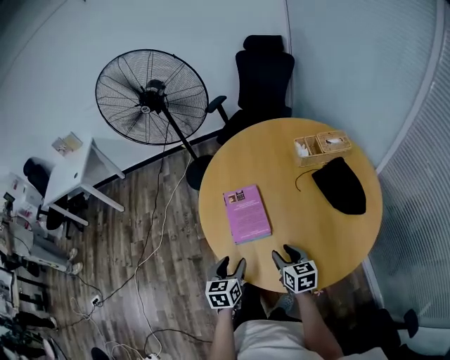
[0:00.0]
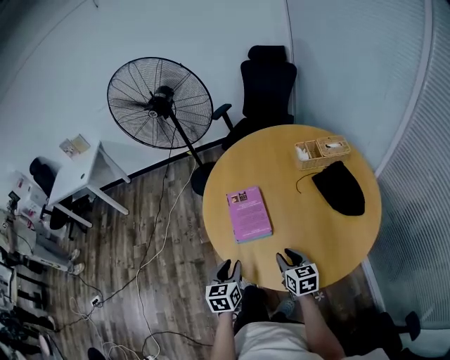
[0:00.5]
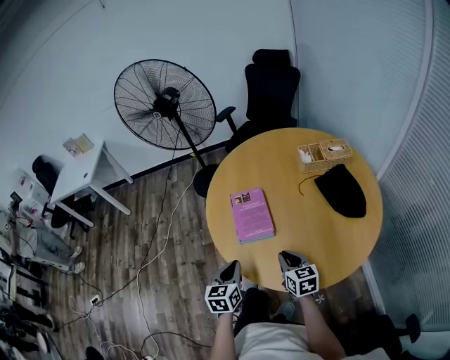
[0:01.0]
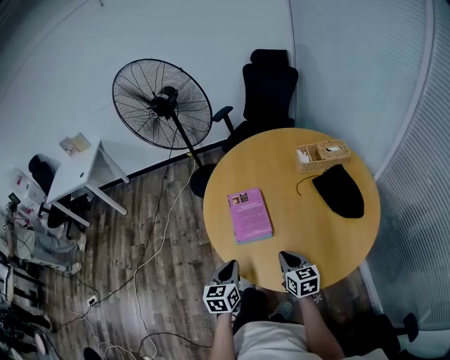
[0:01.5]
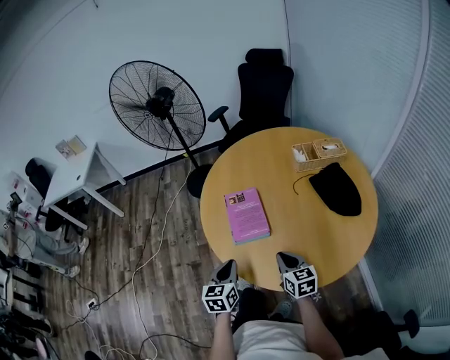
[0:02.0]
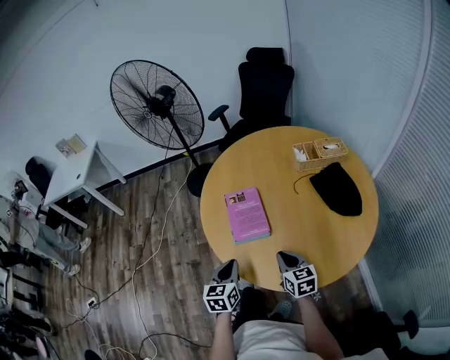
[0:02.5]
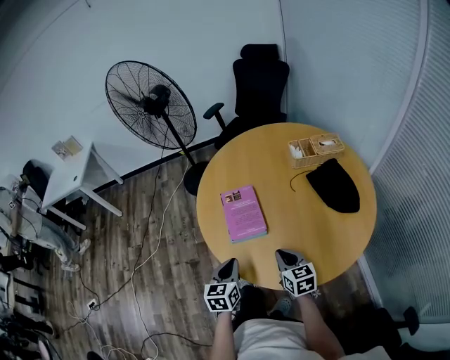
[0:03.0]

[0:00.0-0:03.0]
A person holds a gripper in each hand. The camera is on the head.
0:00.0 to 0:01.5: The left gripper closes. The right gripper closes up.
0:01.5 to 0:03.0: The grippers make only small movements.

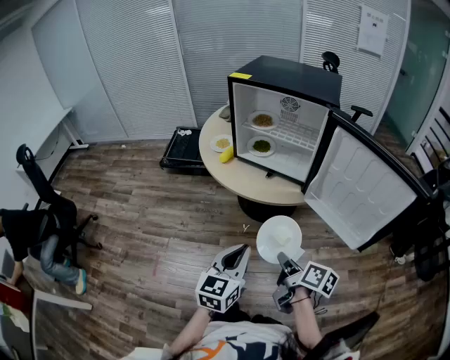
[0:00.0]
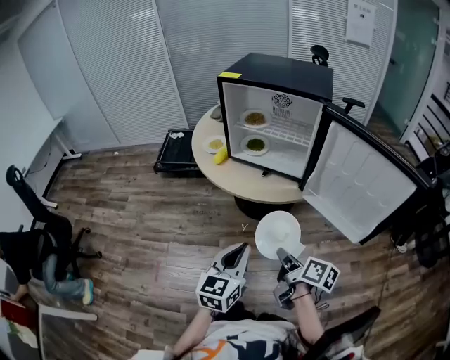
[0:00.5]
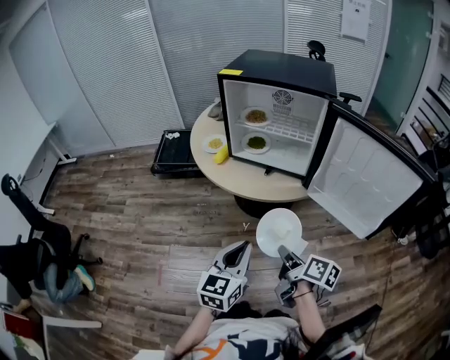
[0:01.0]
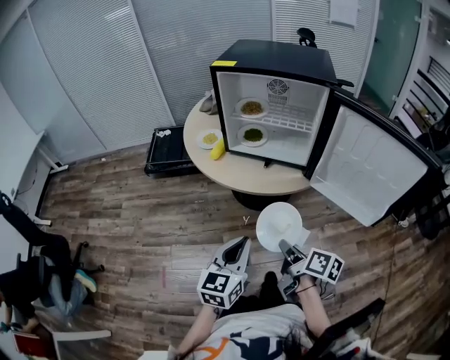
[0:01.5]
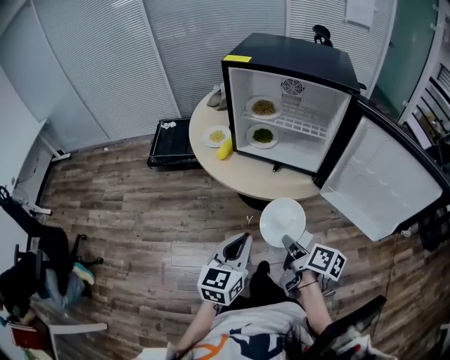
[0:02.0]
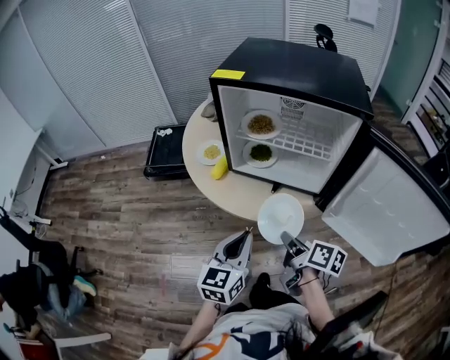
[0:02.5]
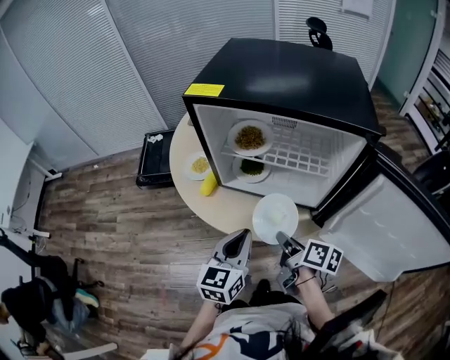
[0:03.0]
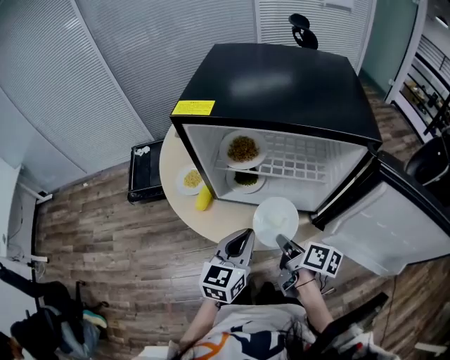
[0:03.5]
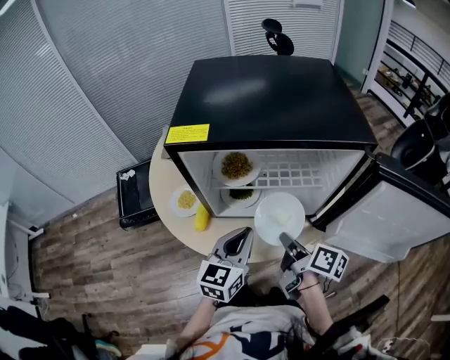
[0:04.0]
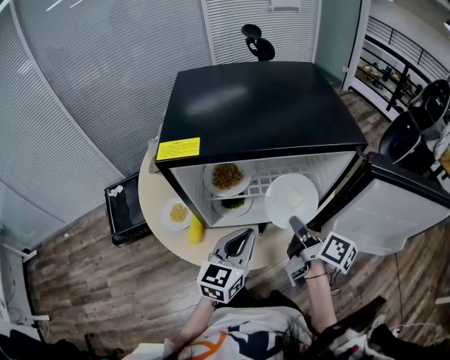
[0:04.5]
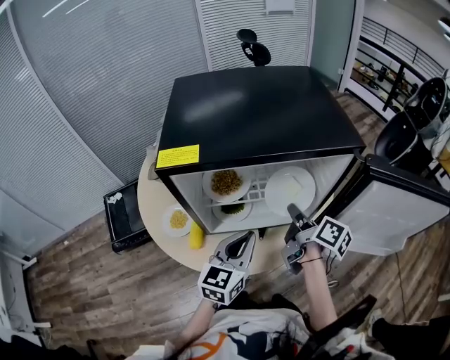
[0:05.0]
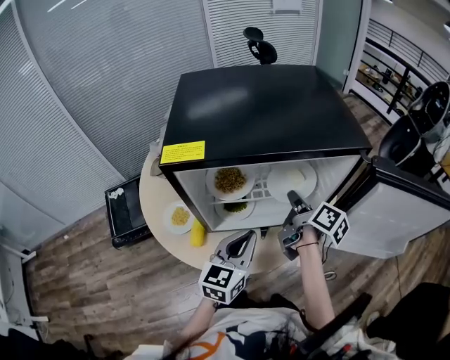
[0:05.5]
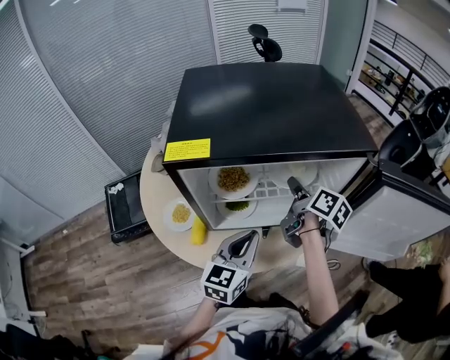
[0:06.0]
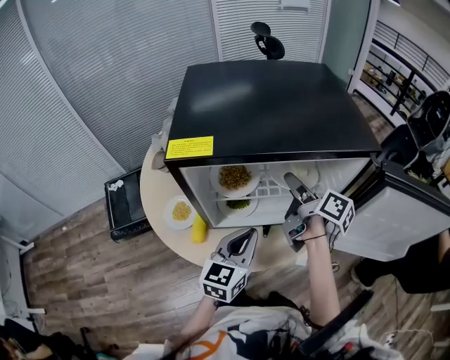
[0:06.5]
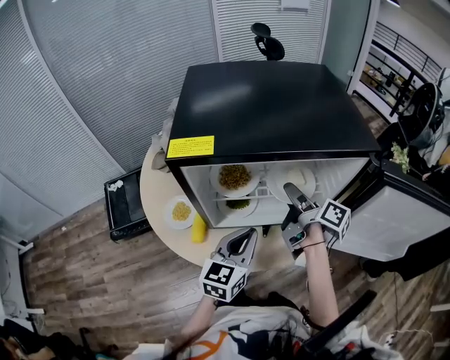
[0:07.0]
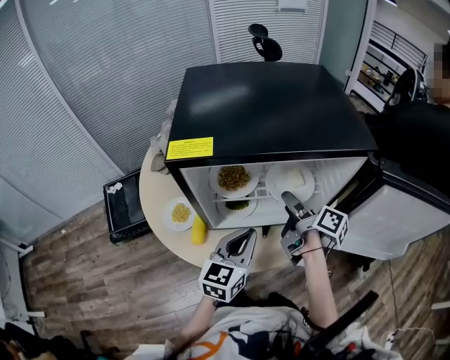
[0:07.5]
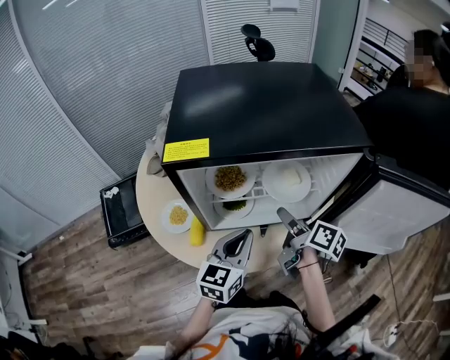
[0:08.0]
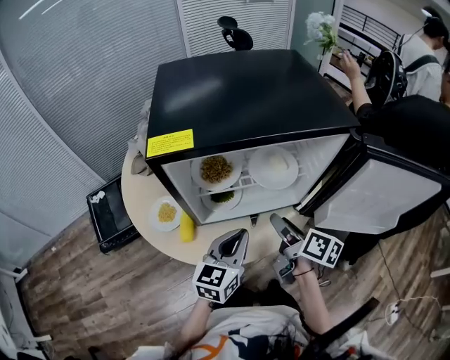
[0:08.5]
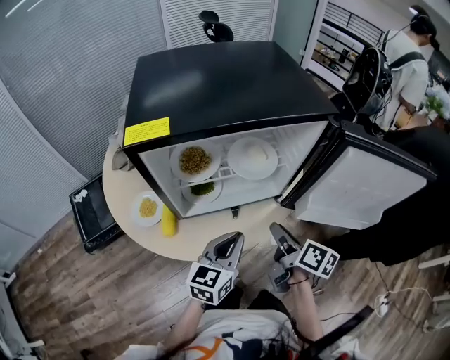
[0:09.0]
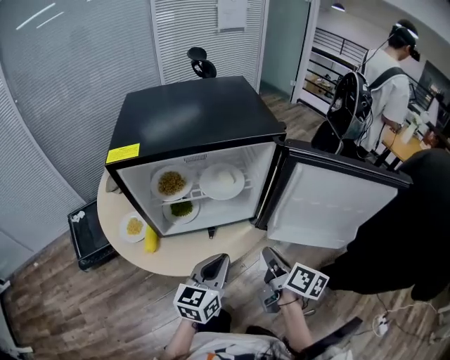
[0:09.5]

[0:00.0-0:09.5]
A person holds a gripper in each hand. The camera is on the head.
0:00.0 to 0:02.0: Both grippers move forward and to the left, approximately 10 cm.
0:02.0 to 0:04.0: The grippers both shift forward by roughly 25 cm. The left gripper turns by about 20 degrees.
0:04.0 to 0:05.5: The right gripper moves forward, approximately 15 cm, and changes its angle by roughly 20 degrees.
0:05.5 to 0:07.5: The right gripper opens up.
0:07.5 to 0:09.5: The right gripper is displaced backward and to the right by roughly 20 cm, swivels approximately 20 degrees, and closes its fingers, while the left gripper heads to the right and backward, covering about 15 cm.

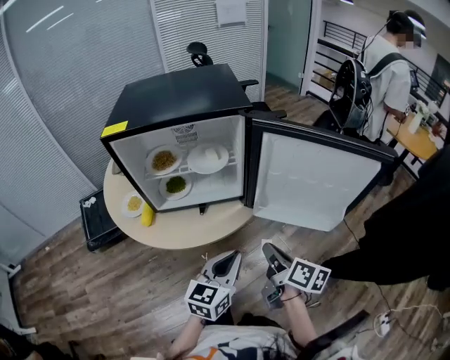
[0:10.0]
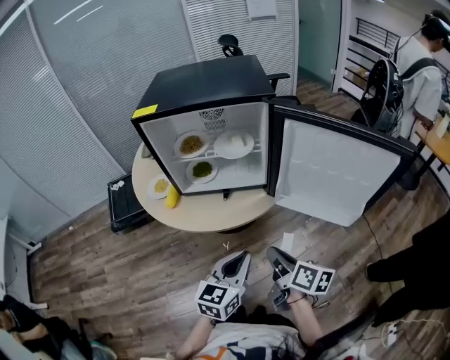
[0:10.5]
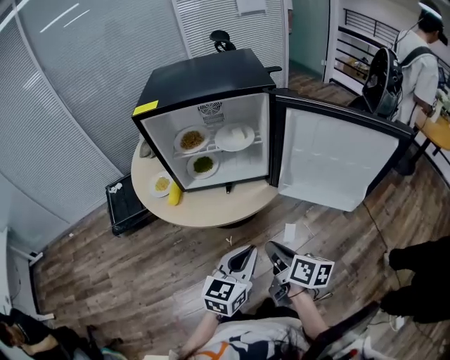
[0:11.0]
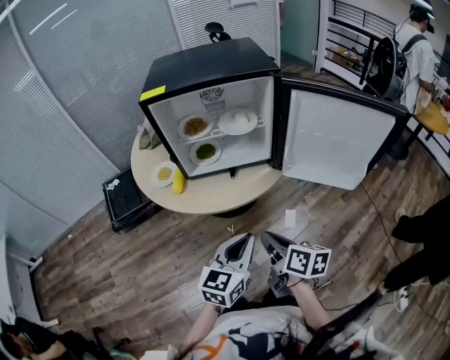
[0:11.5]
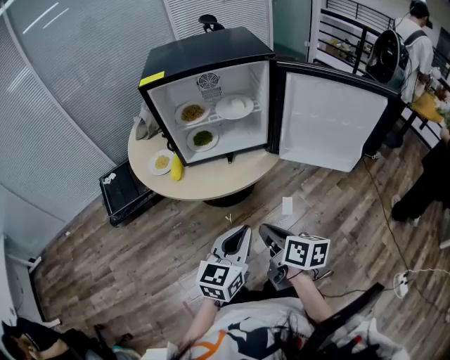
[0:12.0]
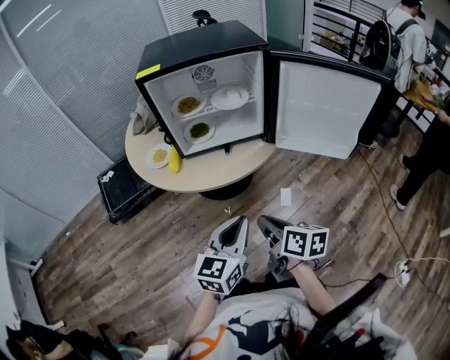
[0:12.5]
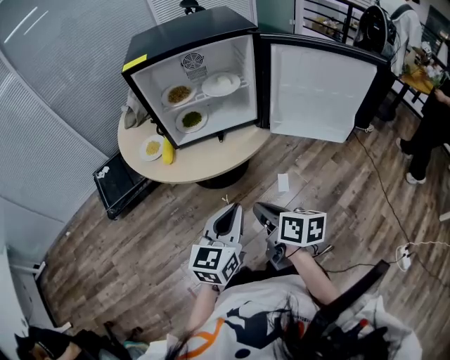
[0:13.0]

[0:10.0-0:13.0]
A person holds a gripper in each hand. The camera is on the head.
0:10.0 to 0:11.5: The left gripper heads backward and to the left, covering about 10 cm; the right gripper travels to the left and backward by roughly 15 cm.
0:11.5 to 0:13.0: The grippers stay close to where they were, moving slightly.

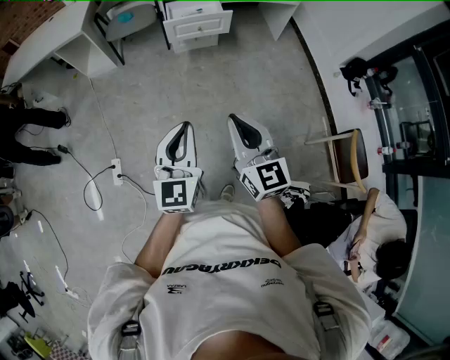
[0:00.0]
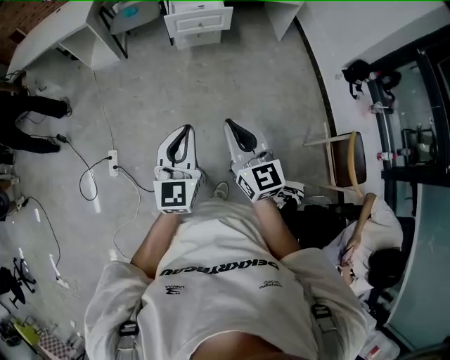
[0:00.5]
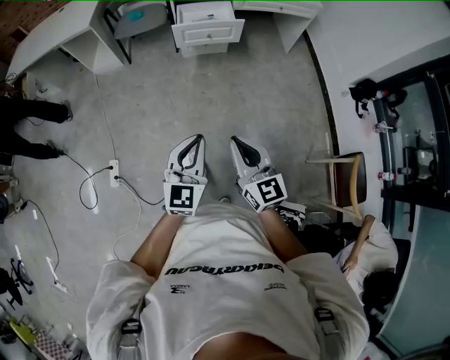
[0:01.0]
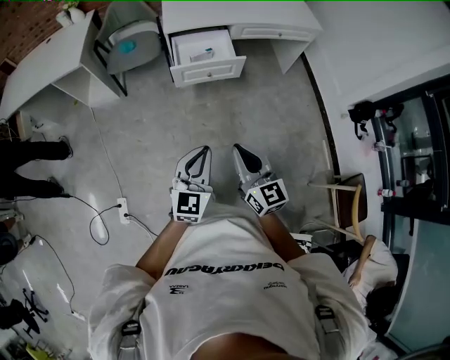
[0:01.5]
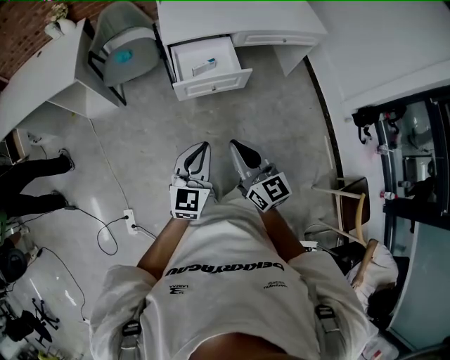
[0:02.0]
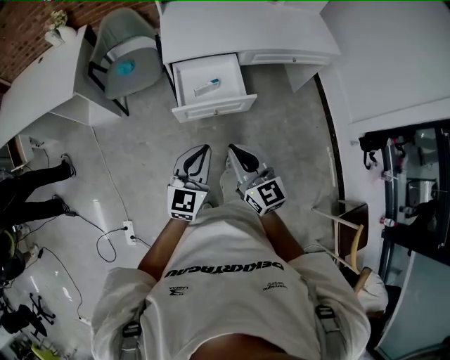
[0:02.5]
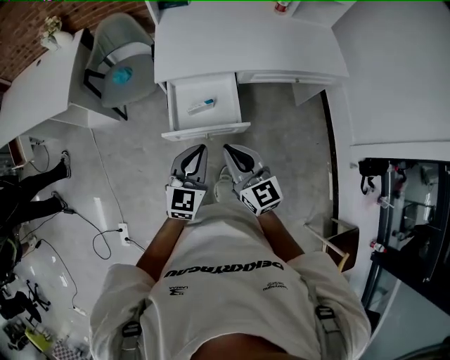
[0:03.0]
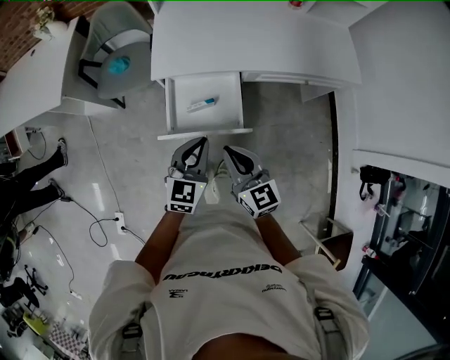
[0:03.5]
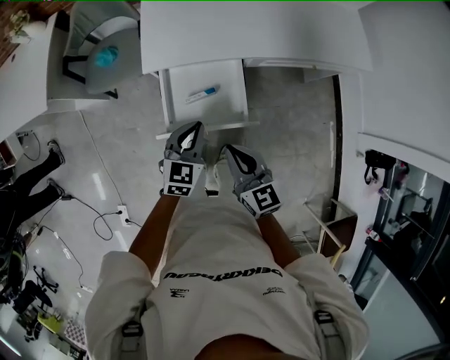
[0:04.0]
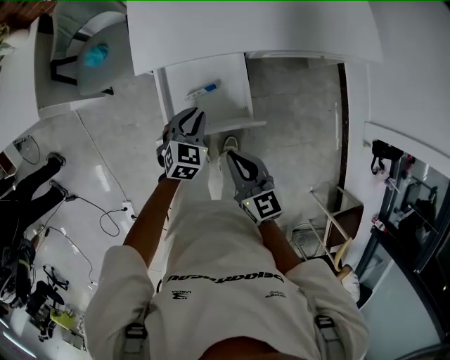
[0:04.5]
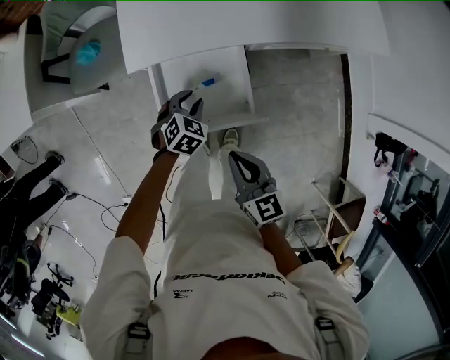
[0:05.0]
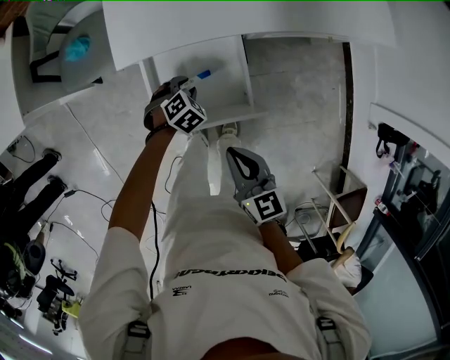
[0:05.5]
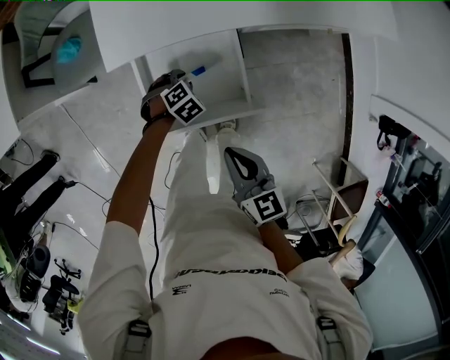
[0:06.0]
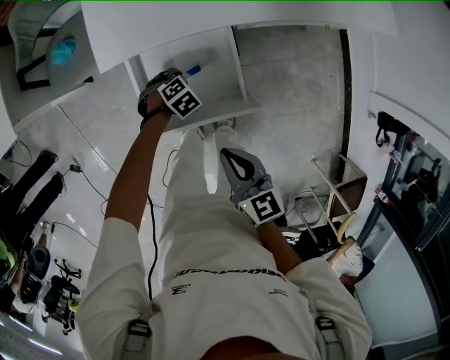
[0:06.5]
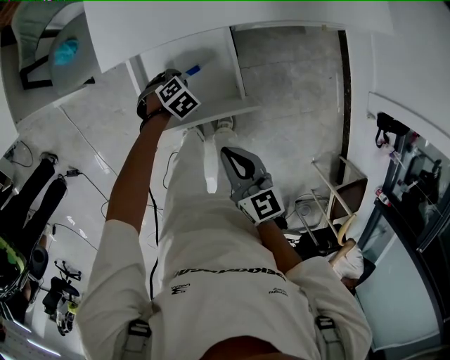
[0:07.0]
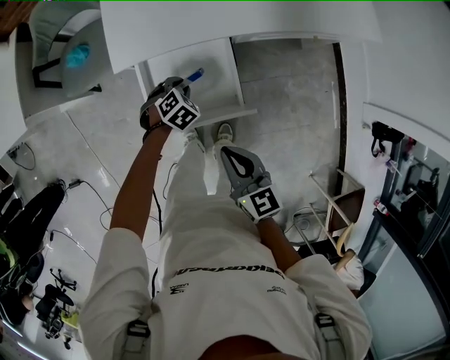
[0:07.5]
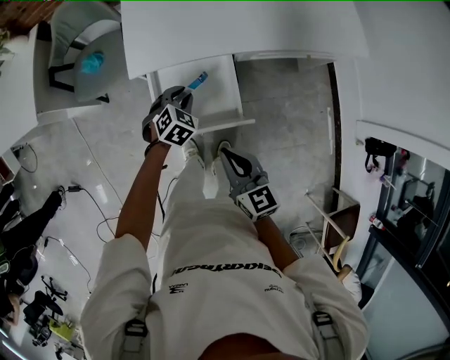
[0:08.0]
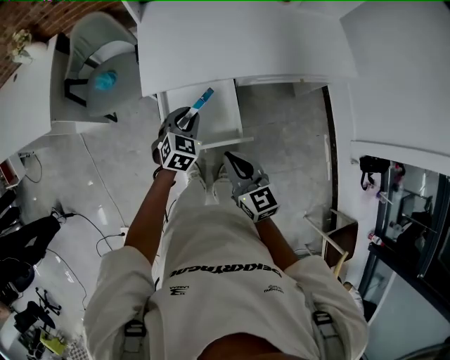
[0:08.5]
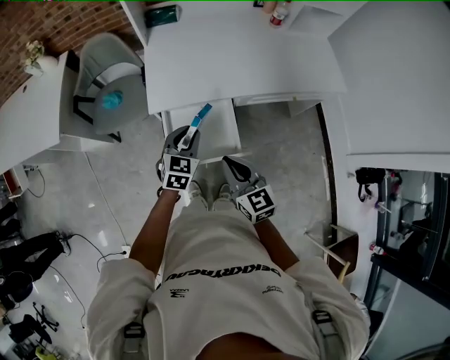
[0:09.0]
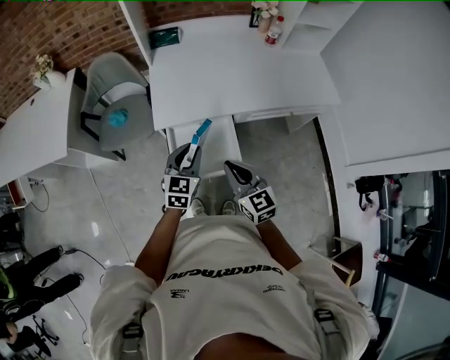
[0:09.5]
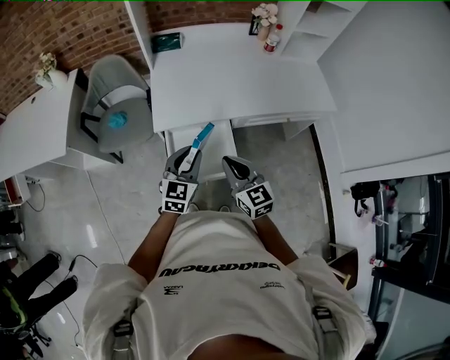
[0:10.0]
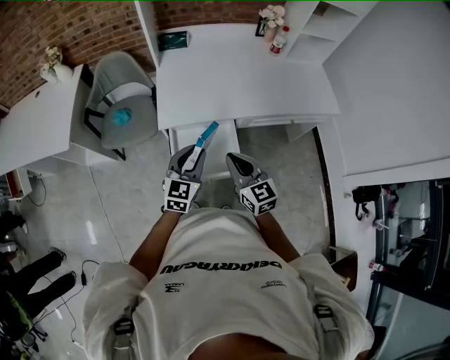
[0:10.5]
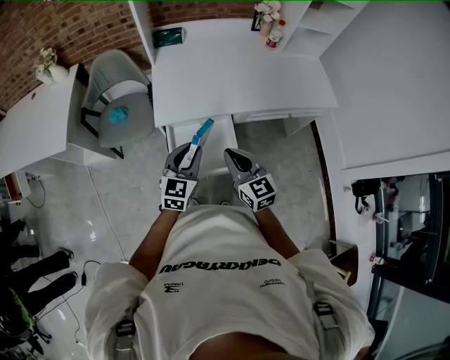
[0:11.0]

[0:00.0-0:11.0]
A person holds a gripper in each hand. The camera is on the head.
0:00.0 to 0:02.0: Both grippers are carried forward, approximately 40 cm.
0:02.0 to 0:03.5: Both grippers move forward, roughly 40 cm.
0:03.5 to 0:05.5: The right gripper travels downward by about 15 cm. The left gripper heads downward and forward, covering approximately 40 cm, points its fingers about 50 degrees further downward, and opens up.
0:05.5 to 0:07.5: The left gripper goes downward and returns, some 5 cm each way.
0:07.5 to 0:09.0: The left gripper moves upward, approximately 25 cm, and tilts its fingers about 40 degrees upward. The right gripper travels upward by about 10 cm.
0:09.0 to 0:11.0: The left gripper heads upward, covering approximately 5 cm.
